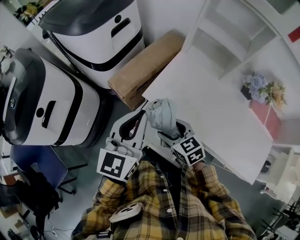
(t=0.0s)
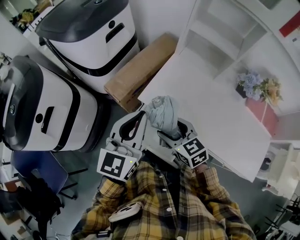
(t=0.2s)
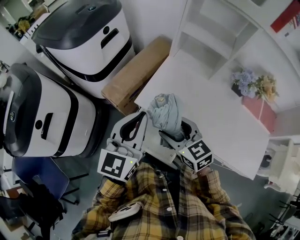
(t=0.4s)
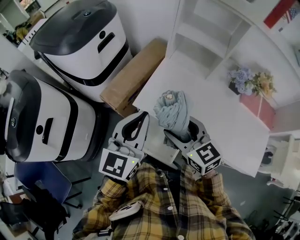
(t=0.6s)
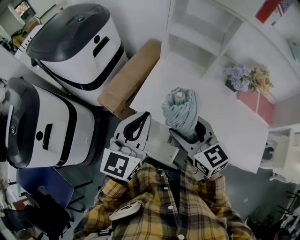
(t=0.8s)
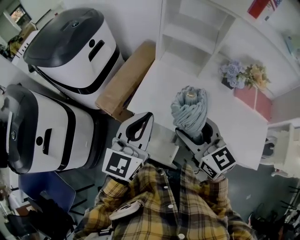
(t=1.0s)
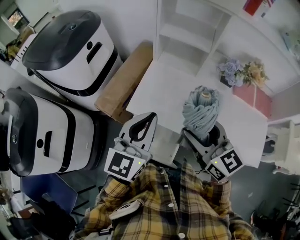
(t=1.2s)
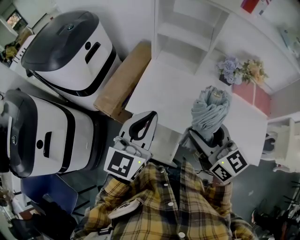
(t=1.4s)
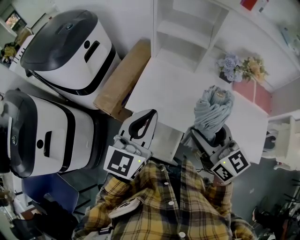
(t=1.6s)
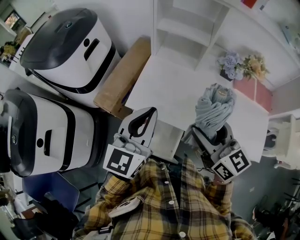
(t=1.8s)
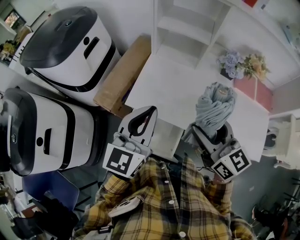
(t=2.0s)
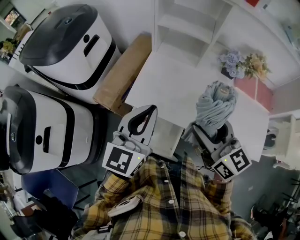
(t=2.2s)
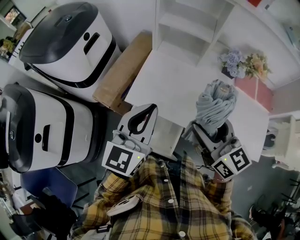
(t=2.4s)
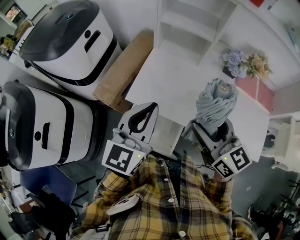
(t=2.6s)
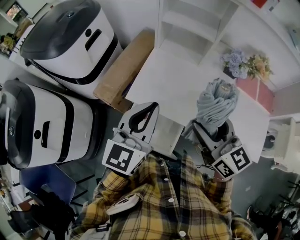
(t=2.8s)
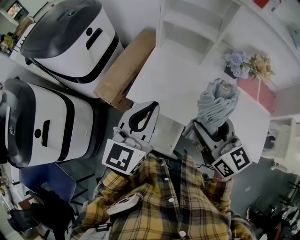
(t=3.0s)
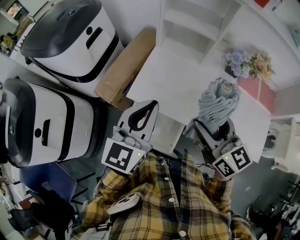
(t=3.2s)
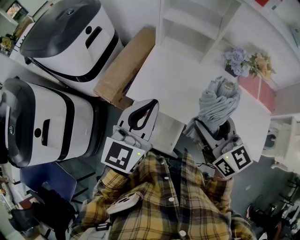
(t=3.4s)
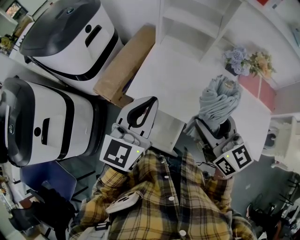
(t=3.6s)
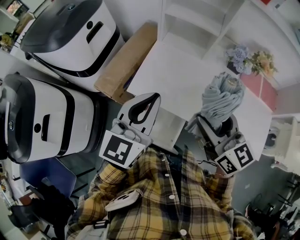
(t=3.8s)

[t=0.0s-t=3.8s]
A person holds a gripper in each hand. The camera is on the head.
t=0.0s to t=1.2s: The left gripper goes approximately 10 cm to the right. The right gripper moves upward and to the right, roughly 25 cm, and rotates about 30 degrees.
t=1.2s to t=2.6s: The grippers move only a little.
t=2.6s to t=3.8s: Neither gripper changes place.

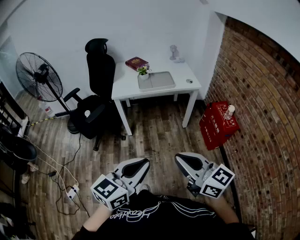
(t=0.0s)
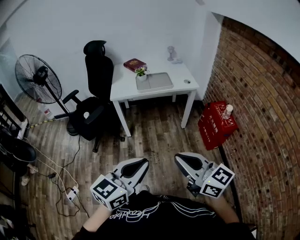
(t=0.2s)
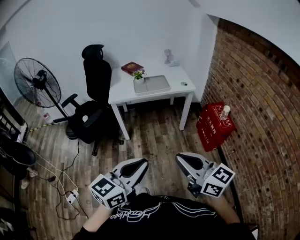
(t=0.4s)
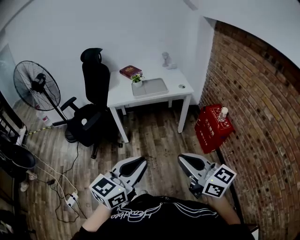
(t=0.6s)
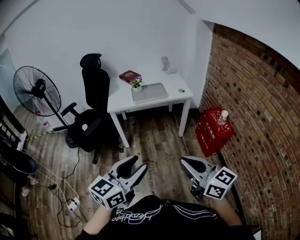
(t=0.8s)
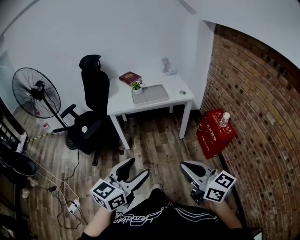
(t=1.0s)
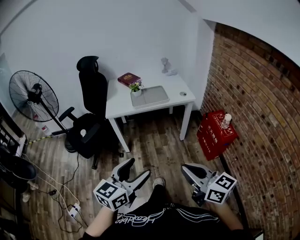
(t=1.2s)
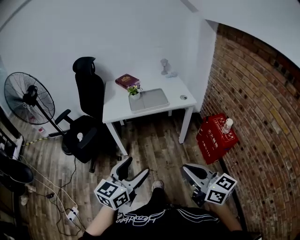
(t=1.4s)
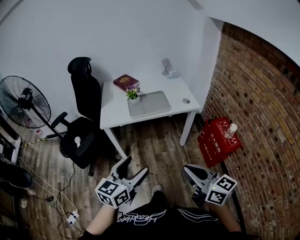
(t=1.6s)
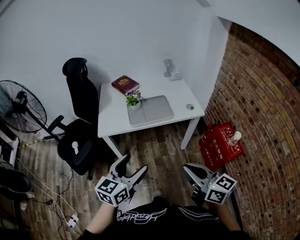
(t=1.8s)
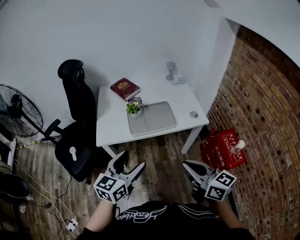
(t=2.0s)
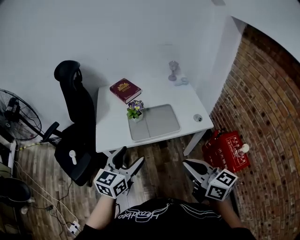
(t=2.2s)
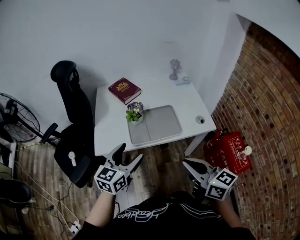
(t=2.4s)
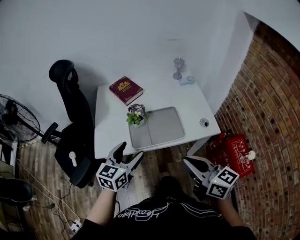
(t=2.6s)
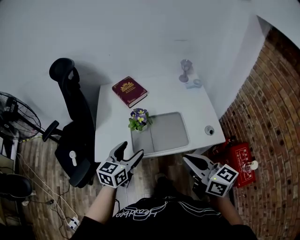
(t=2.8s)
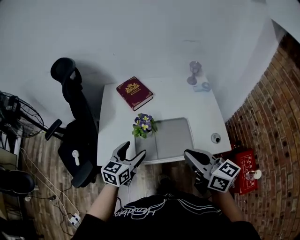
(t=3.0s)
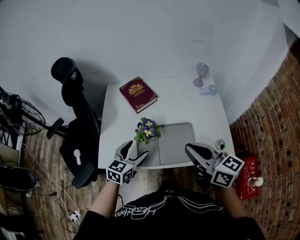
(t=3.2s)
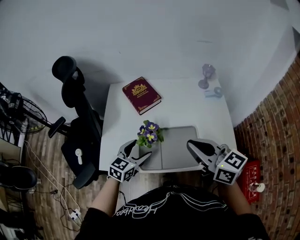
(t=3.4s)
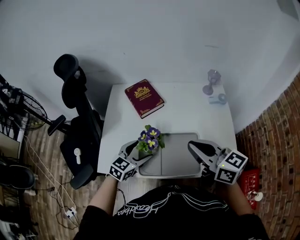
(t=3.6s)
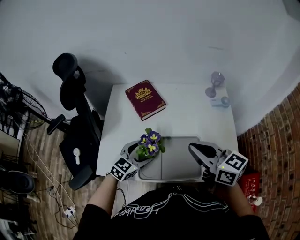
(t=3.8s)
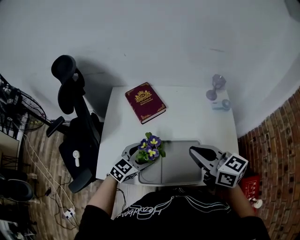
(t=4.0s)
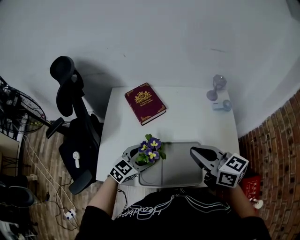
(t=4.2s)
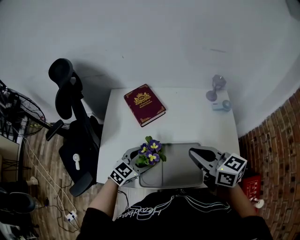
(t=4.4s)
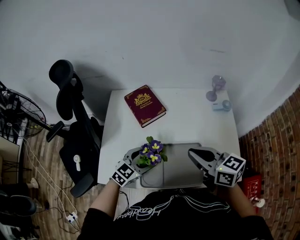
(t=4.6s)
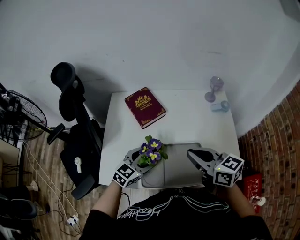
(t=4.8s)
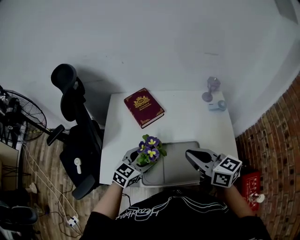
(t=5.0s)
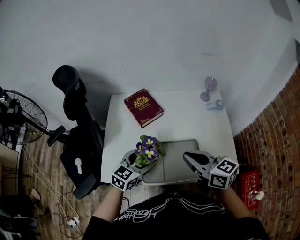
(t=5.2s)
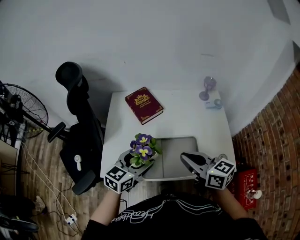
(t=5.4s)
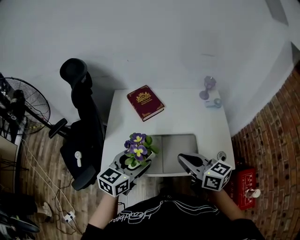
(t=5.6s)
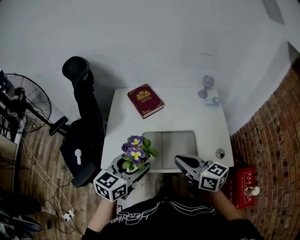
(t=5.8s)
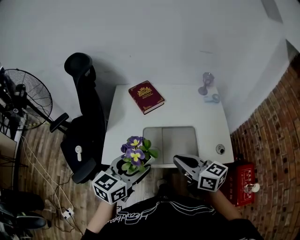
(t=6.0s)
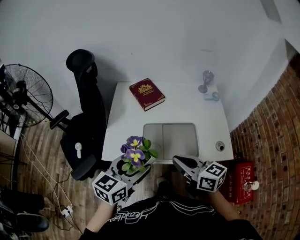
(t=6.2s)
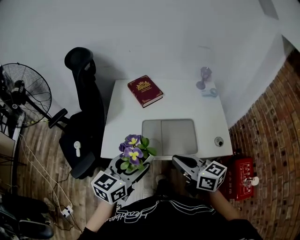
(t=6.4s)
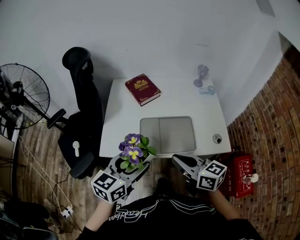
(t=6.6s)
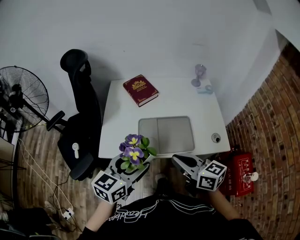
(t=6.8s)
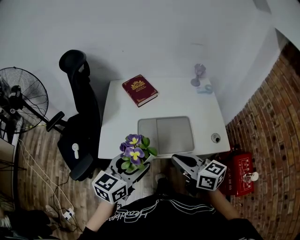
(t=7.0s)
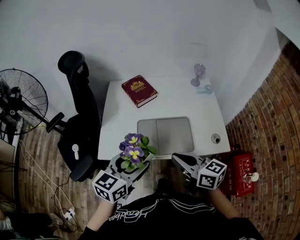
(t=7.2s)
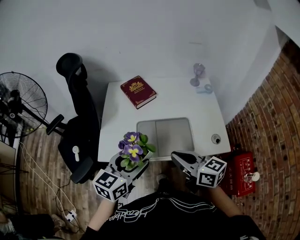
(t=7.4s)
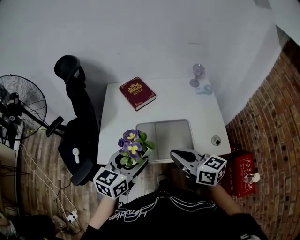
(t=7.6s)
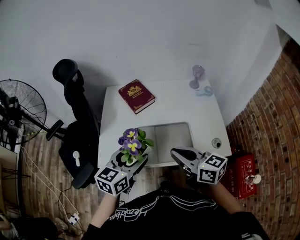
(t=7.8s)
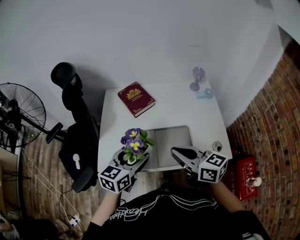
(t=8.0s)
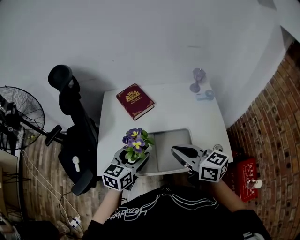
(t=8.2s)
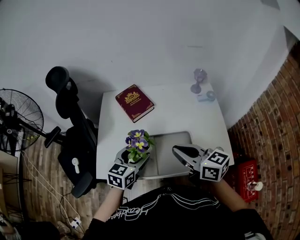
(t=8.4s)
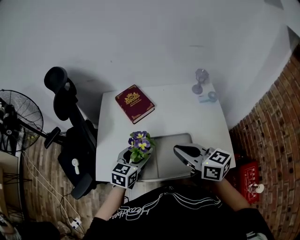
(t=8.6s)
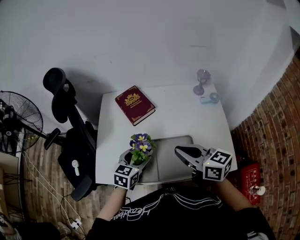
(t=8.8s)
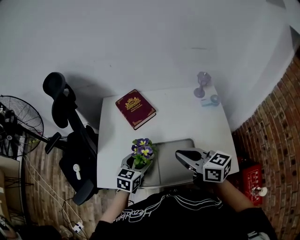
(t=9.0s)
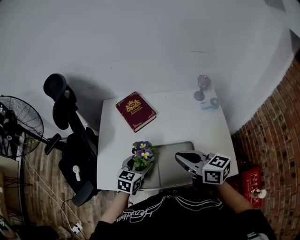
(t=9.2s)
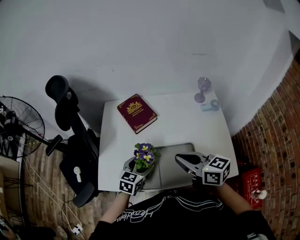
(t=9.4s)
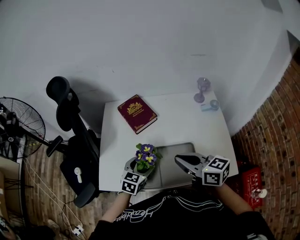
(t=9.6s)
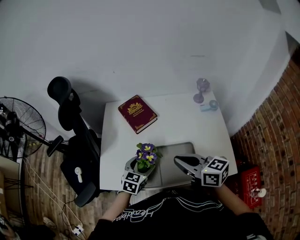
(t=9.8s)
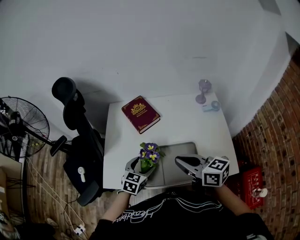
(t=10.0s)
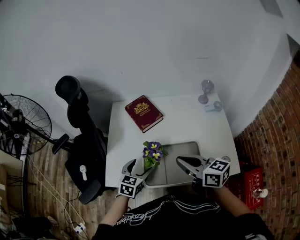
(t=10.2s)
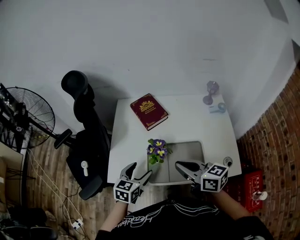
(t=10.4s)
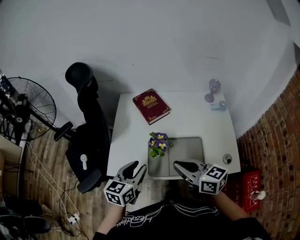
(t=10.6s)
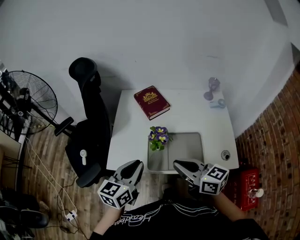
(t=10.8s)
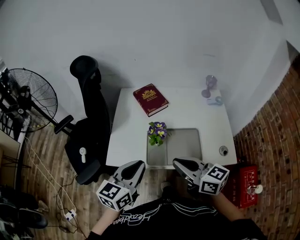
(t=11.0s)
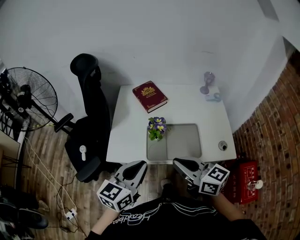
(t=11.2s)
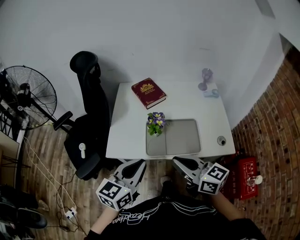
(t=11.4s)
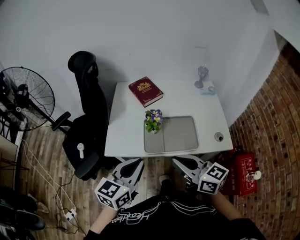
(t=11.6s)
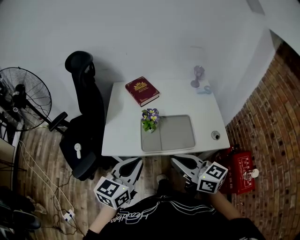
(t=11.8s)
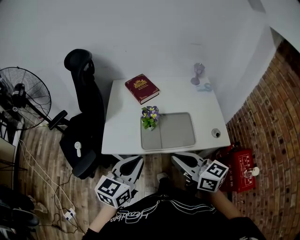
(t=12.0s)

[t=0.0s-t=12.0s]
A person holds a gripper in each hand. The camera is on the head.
t=0.0s to t=1.6s: Both grippers travel together forward, roughly 20 cm. The left gripper opens its fingers.
t=1.6s to t=3.0s: The two grippers travel together, forward, roughly 50 cm.
t=3.0s to t=4.4s: The left gripper heads forward and downward, covering about 15 cm, and rotates roughly 20 degrees. Meanwhile the right gripper shifts roughly 15 cm forward.
t=4.4s to t=6.0s: The right gripper shifts approximately 15 cm backward and to the left. Meanwhile the left gripper shifts about 25 cm upward and backward, and rotates some 30 degrees.
t=6.0s to t=7.6s: The grippers stay close to where they were, moving slightly.
t=7.6s to t=9.0s: The right gripper moves forward, some 10 cm. Meanwhile the left gripper goes approximately 20 cm downward and forward.
t=9.0s to t=10.4s: The left gripper goes approximately 10 cm to the left and backward. The right gripper is displaced to the left by about 5 cm.
t=10.4s to t=12.0s: The left gripper moves backward and upward, approximately 20 cm, and closes up, while the right gripper heads backward, covering about 15 cm.

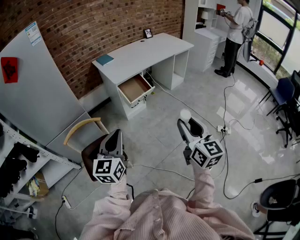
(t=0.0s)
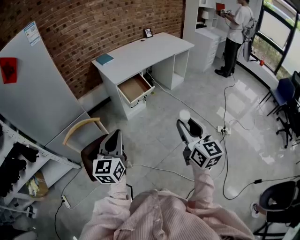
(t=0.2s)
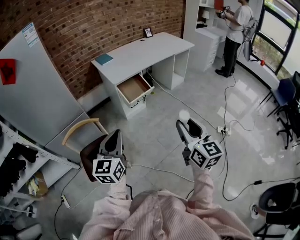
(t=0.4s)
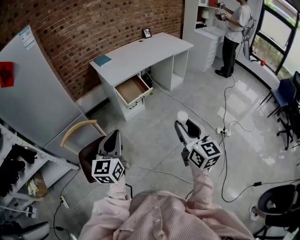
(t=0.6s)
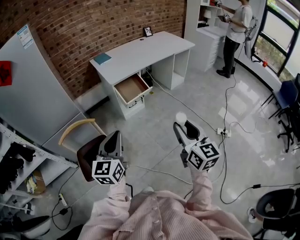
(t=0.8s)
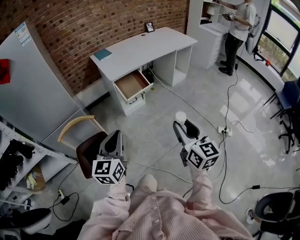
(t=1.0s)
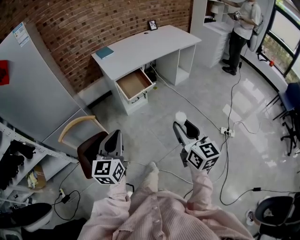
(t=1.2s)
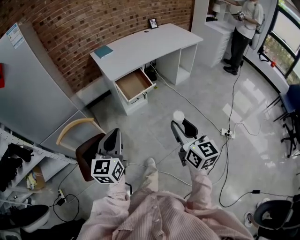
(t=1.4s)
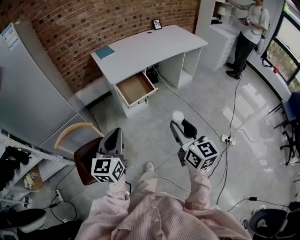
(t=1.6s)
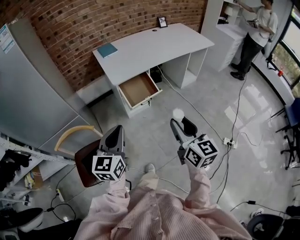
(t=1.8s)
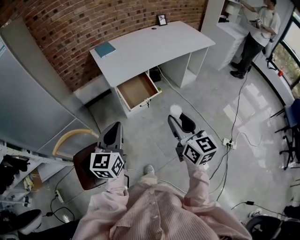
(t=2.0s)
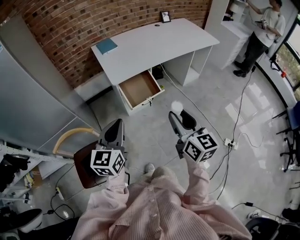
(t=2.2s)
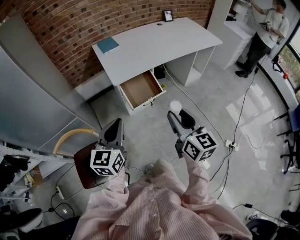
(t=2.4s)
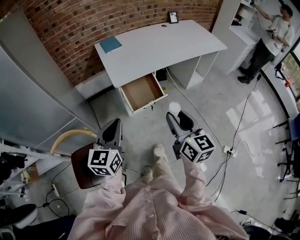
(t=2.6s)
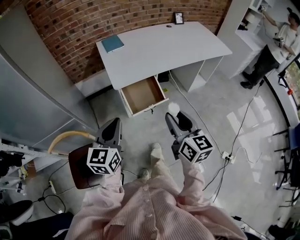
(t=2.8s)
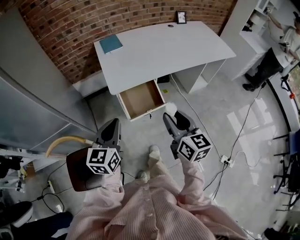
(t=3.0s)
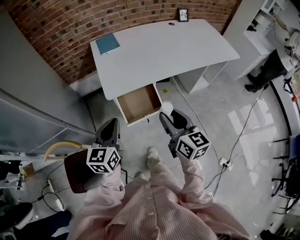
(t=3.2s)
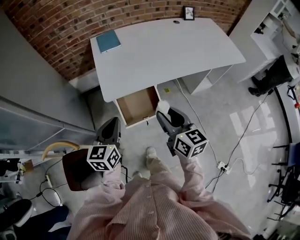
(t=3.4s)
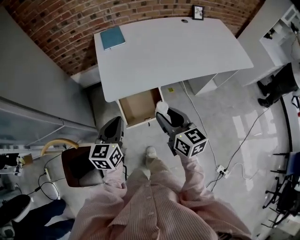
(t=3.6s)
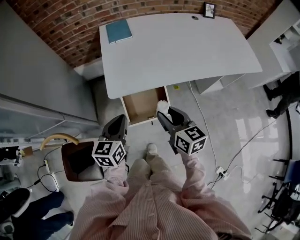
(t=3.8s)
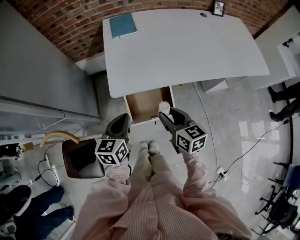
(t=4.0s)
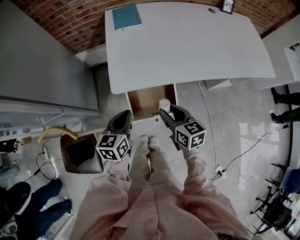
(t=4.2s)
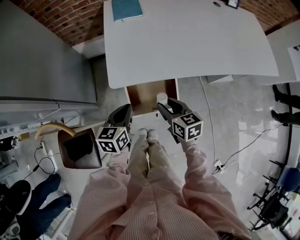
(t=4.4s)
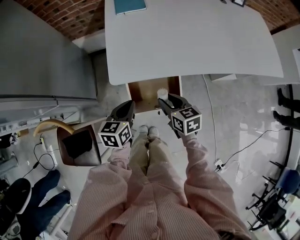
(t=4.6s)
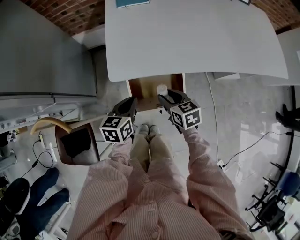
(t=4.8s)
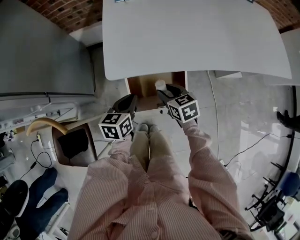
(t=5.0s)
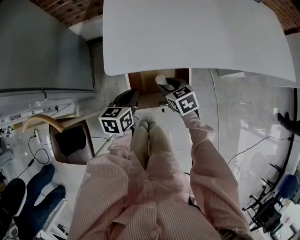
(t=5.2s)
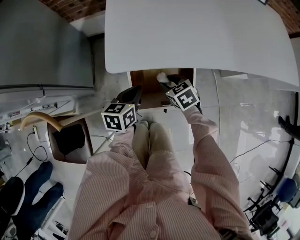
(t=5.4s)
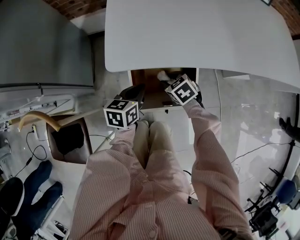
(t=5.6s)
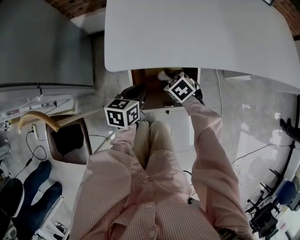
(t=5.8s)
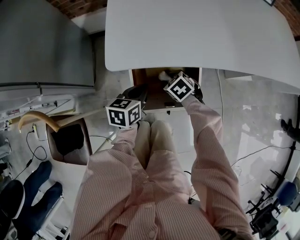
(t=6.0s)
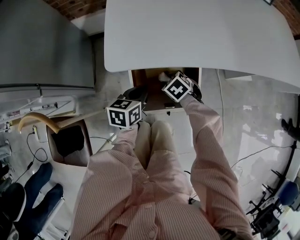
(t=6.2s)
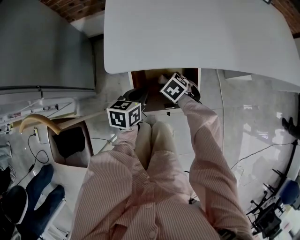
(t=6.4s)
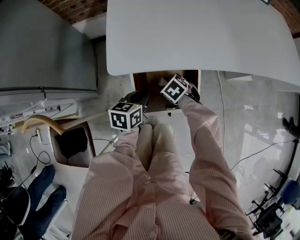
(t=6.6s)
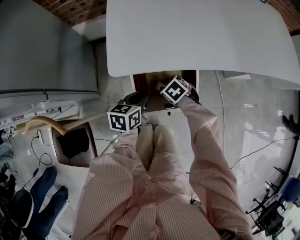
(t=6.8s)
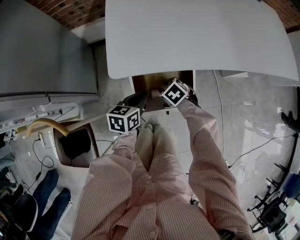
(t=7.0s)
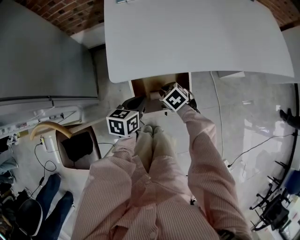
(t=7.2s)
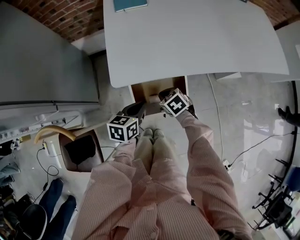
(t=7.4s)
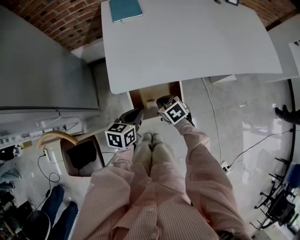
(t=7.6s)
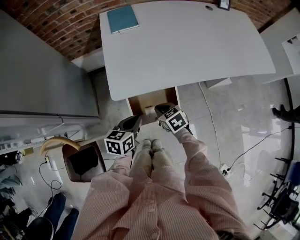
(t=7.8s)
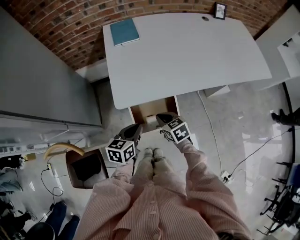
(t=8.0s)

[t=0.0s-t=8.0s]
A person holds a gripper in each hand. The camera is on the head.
t=0.0s to t=1.6s: The two grippers go some 15 cm forward.
t=1.6s to t=3.2s: The two grippers go some 35 cm forward.
t=3.2s to t=4.8s: Both grippers move downward and forward, roughly 30 cm. The right gripper swivels about 40 degrees; the left gripper rotates roughly 30 degrees.
t=4.8s to t=6.4s: The left gripper heads downward, covering roughly 10 cm; the right gripper travels downward by roughly 20 cm, and turns by about 40 degrees.
t=6.4s to t=8.0s: The two grippers go about 20 cm upward. The right gripper turns by roughly 40 degrees, and closes.
